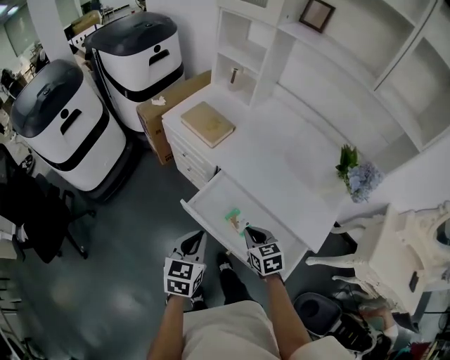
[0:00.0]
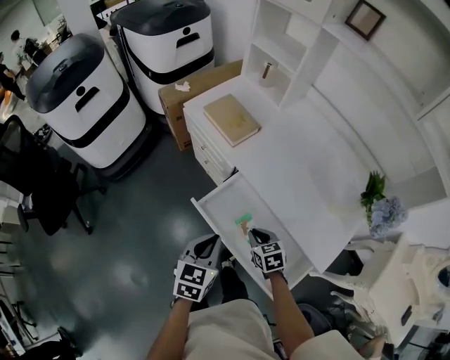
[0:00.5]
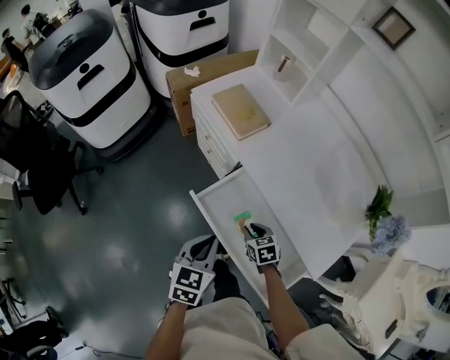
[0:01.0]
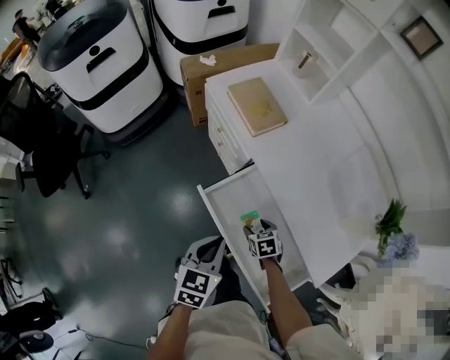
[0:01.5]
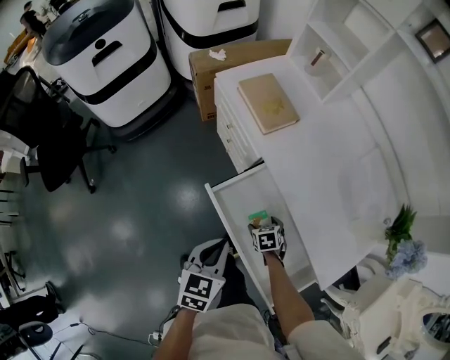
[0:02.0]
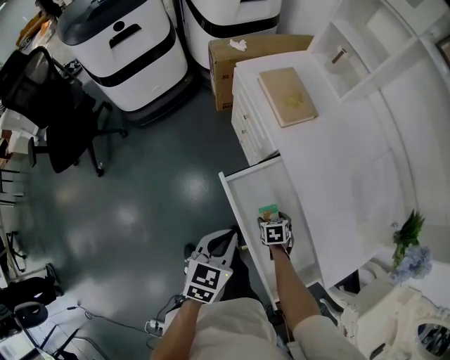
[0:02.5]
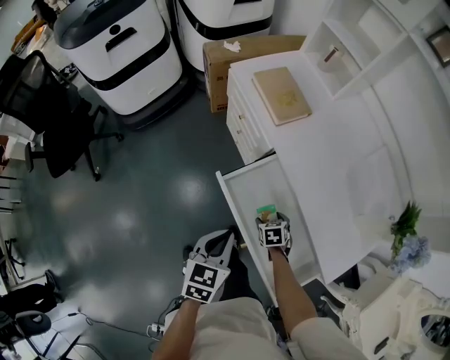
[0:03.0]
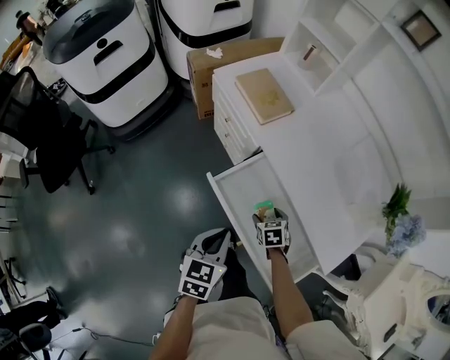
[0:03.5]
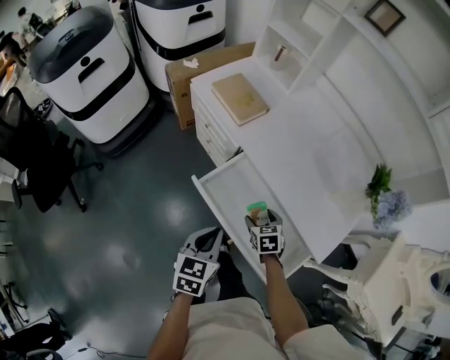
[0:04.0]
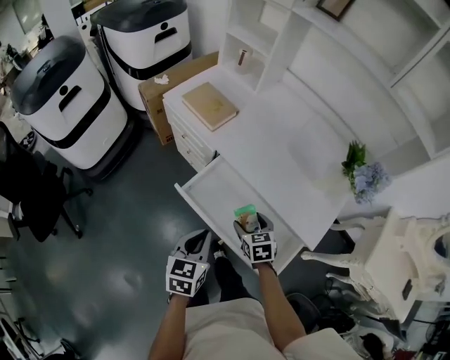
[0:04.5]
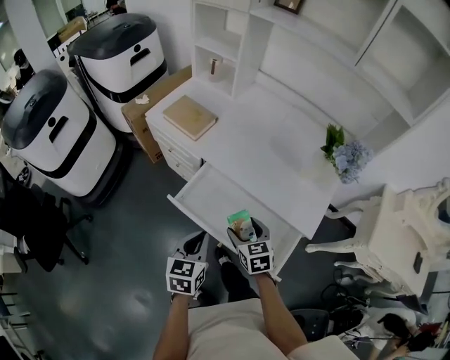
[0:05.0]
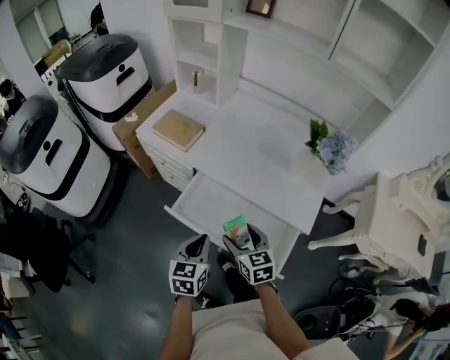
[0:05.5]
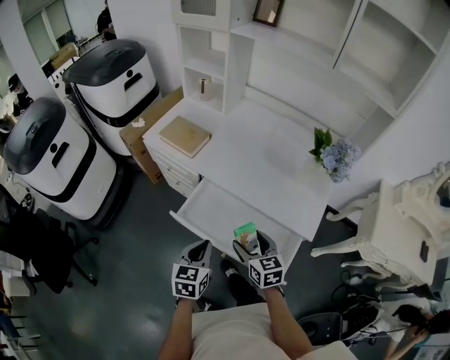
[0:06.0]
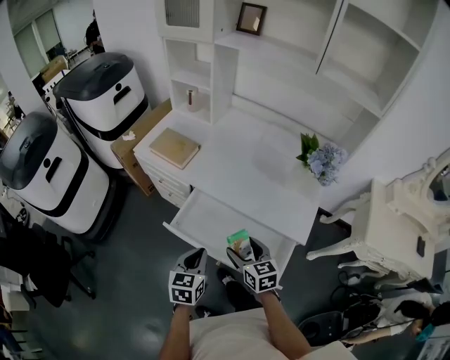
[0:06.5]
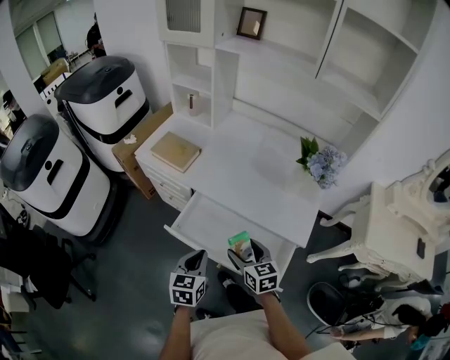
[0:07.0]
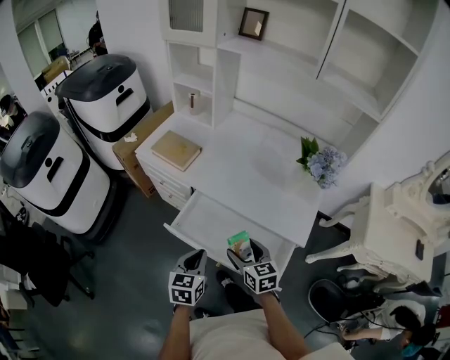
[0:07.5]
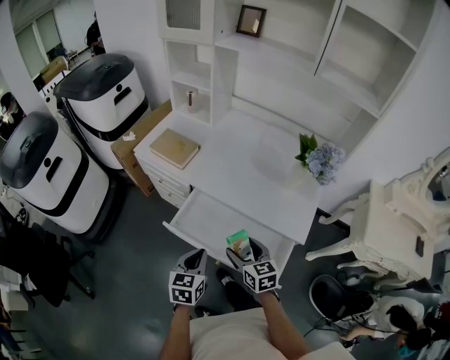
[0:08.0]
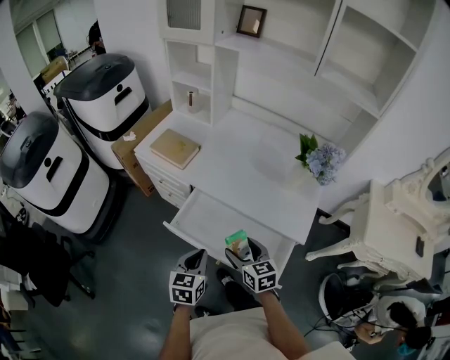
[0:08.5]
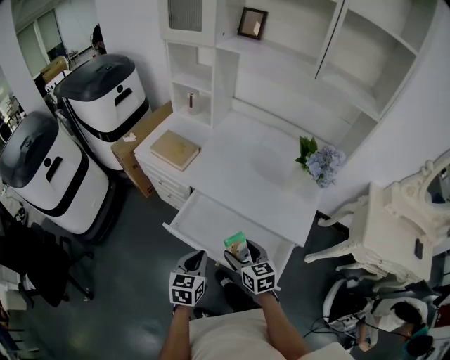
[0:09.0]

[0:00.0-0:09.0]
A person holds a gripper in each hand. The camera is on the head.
0:00.0 to 0:02.0: The left gripper travels downward by about 5 cm. Meanwhile the right gripper heads downward, covering approximately 25 cm, rotates approximately 30 degrees, and opens up.
0:02.0 to 0:04.5: The right gripper shifts approximately 20 cm upward, and swivels some 30 degrees. The left gripper changes place by roughly 5 cm.
0:04.5 to 0:07.0: The right gripper goes roughly 10 cm upward and backward, and changes its angle by some 20 degrees.
0:07.0 to 0:09.0: The grippers move only a little.

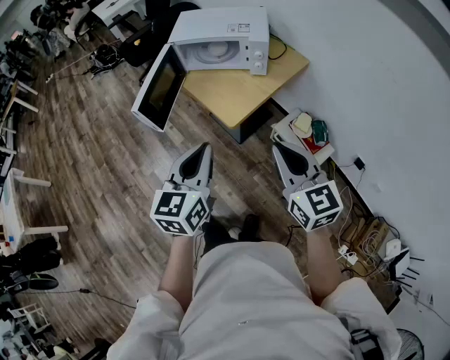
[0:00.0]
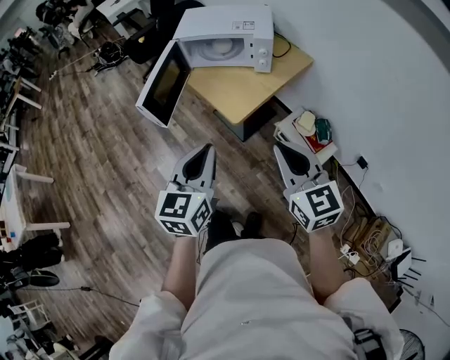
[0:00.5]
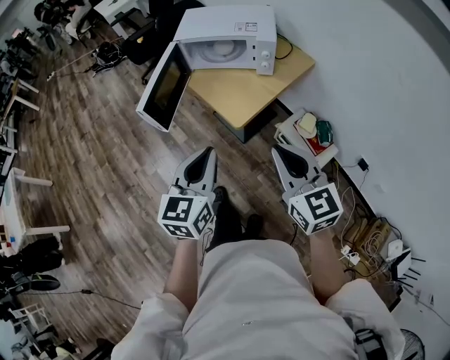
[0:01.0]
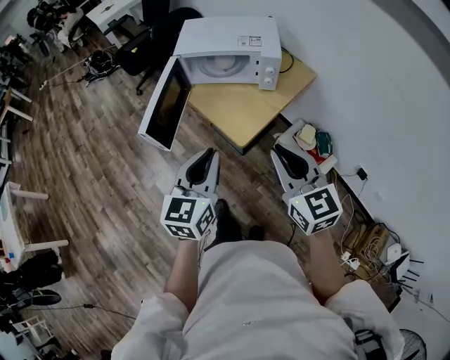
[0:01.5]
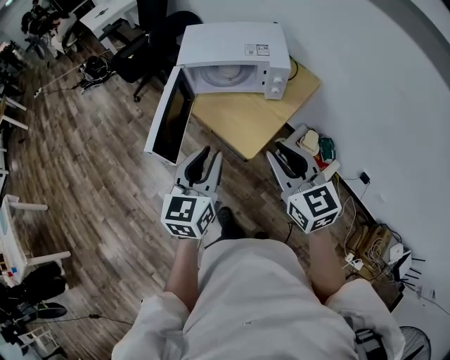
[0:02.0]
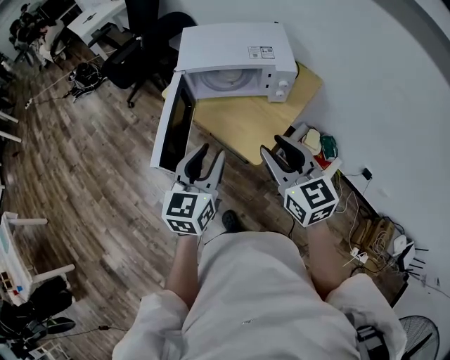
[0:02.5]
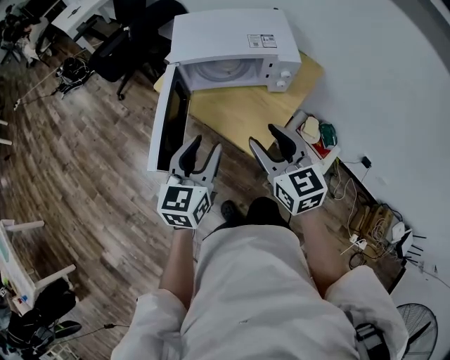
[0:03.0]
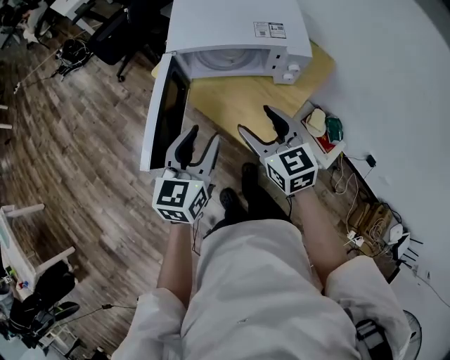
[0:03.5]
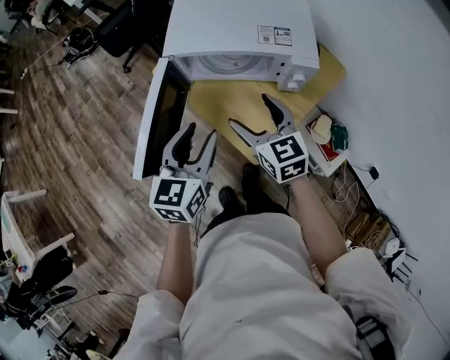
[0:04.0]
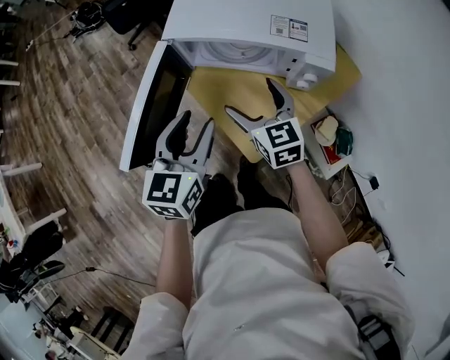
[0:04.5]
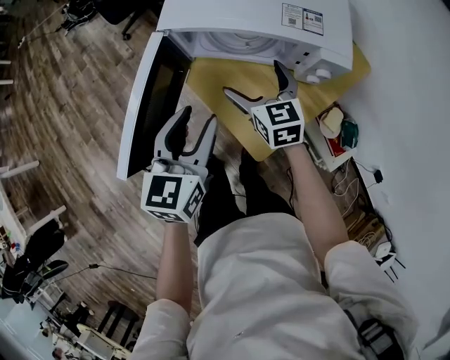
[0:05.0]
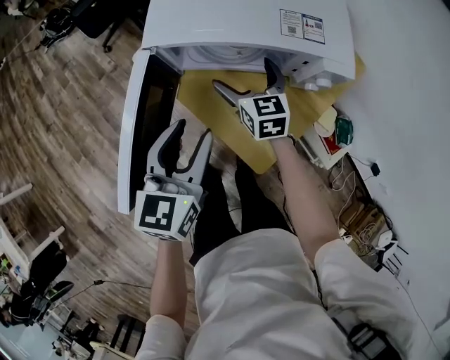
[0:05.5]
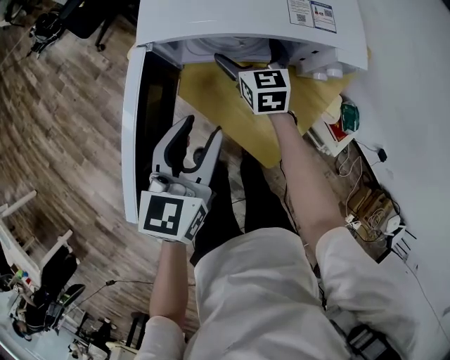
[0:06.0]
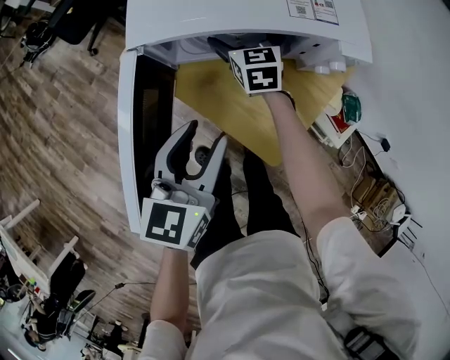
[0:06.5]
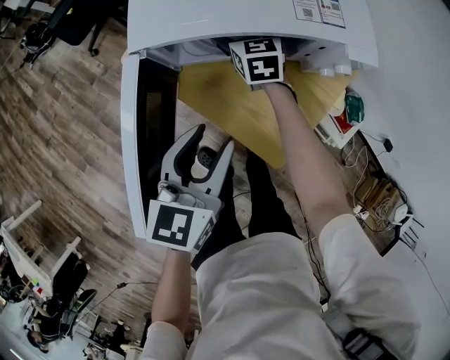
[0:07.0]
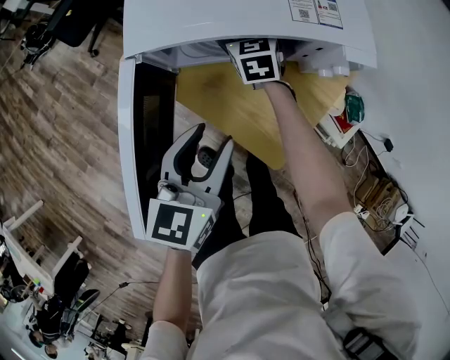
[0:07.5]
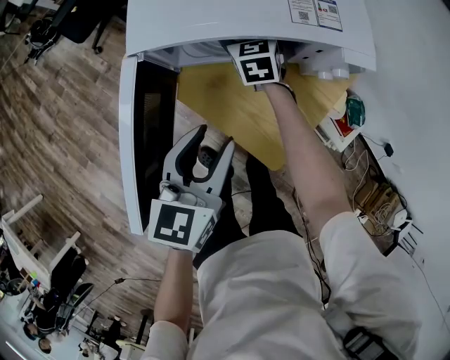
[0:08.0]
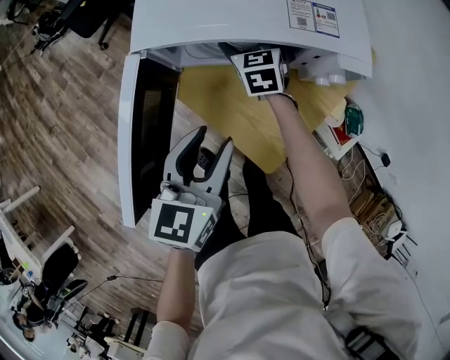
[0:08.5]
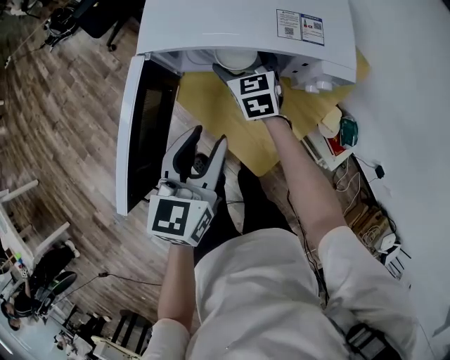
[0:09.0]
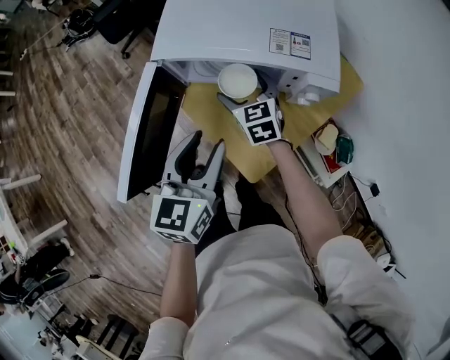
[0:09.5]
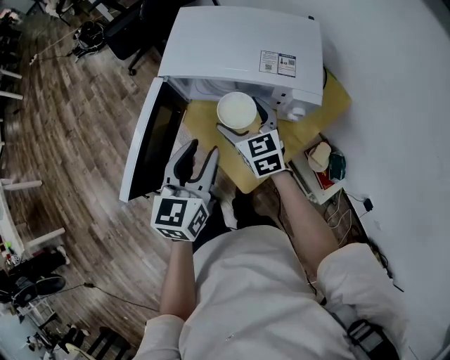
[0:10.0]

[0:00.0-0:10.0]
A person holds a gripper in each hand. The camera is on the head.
0:00.0 to 0:02.0: Both grippers move forward and to the left, about 15 cm. The left gripper opens up.
0:02.0 to 0:04.0: The grippers both shift forward and downward by some 25 cm. The right gripper opens its fingers.
0:04.0 to 0:06.0: The left gripper travels forward and downward by roughly 10 cm; the right gripper is displaced forward and downward by approximately 25 cm.
0:06.0 to 0:08.0: The right gripper goes some 5 cm forward.
0:08.0 to 0:10.0: The right gripper heads backward and upward, covering some 20 cm, and changes its angle by roughly 20 degrees. The left gripper is displaced upward by some 10 cm.

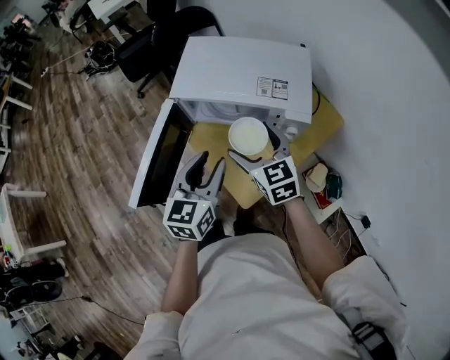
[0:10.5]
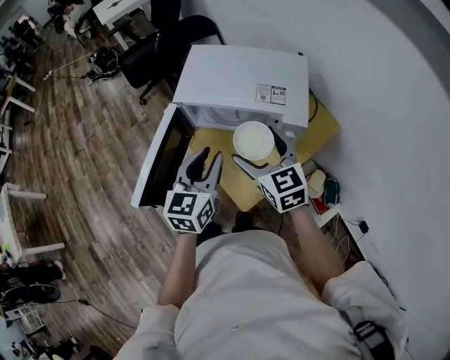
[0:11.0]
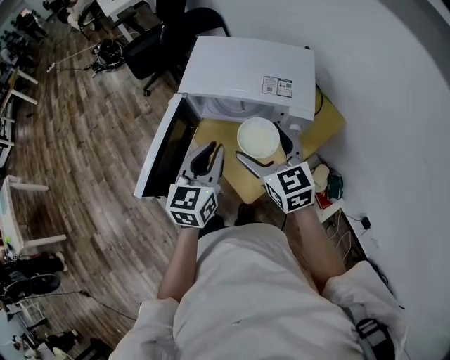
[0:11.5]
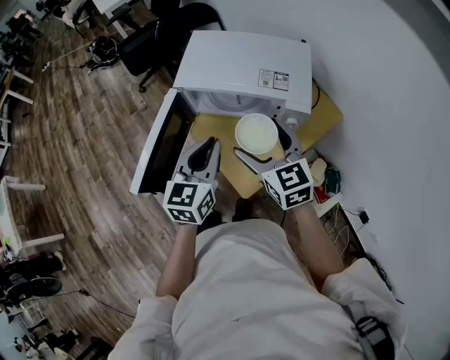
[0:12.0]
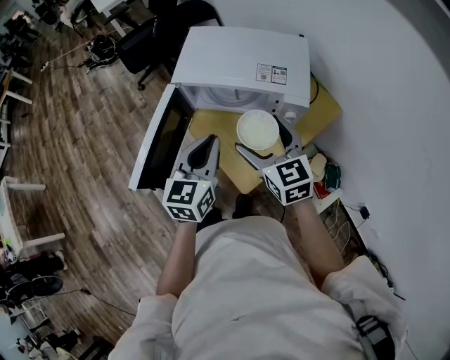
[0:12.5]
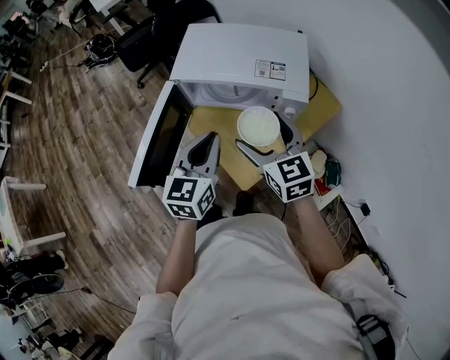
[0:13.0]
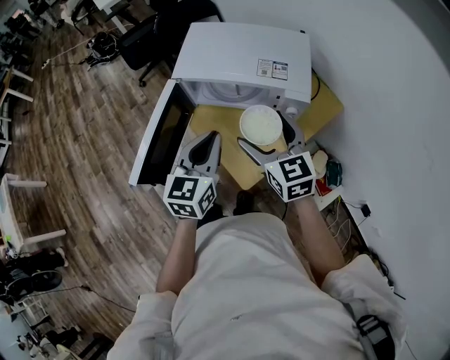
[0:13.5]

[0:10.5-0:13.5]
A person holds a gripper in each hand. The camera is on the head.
0:10.5 to 0:12.0: The right gripper shifts roughly 5 cm upward. The left gripper closes.
0:12.0 to 0:13.5: There are only small adjustments of the grippers.

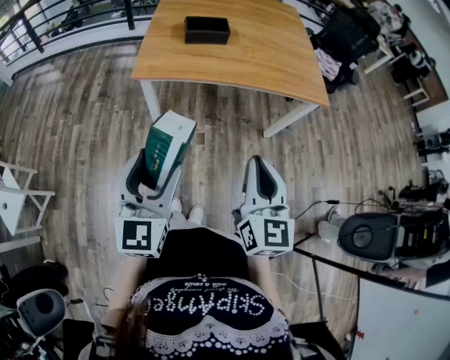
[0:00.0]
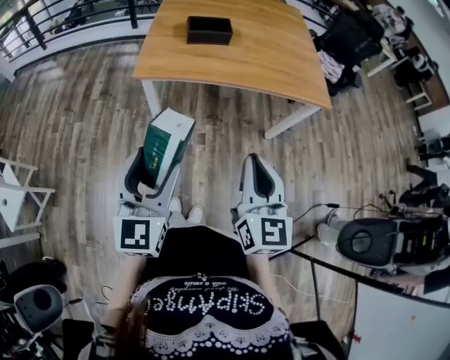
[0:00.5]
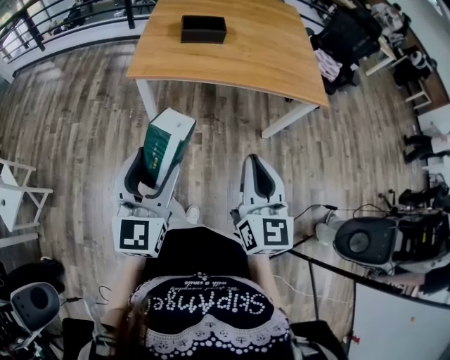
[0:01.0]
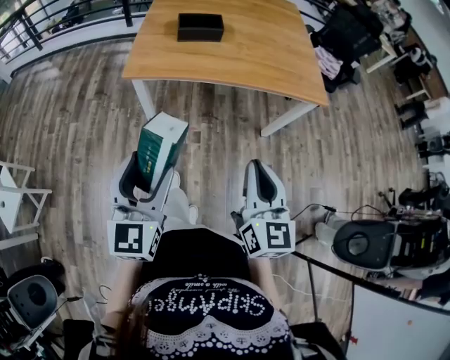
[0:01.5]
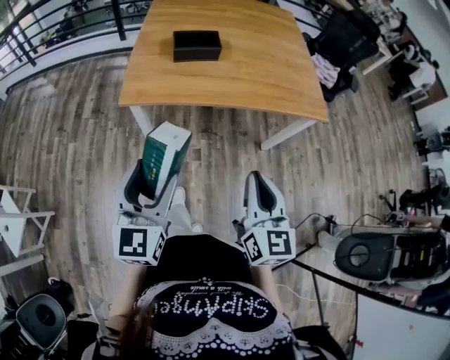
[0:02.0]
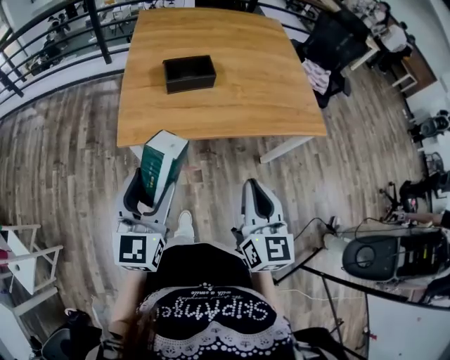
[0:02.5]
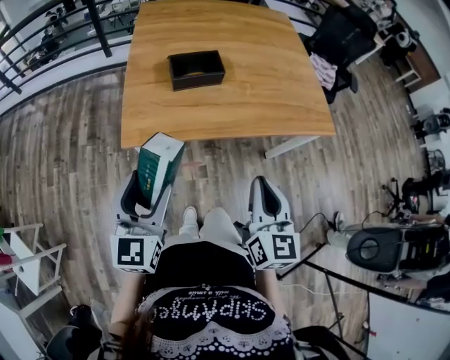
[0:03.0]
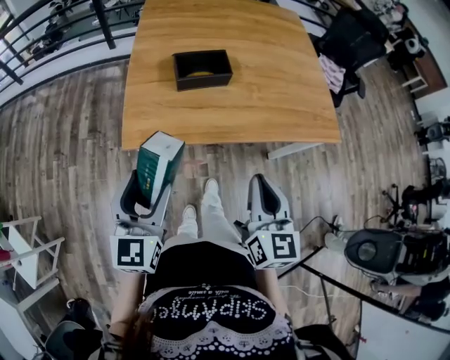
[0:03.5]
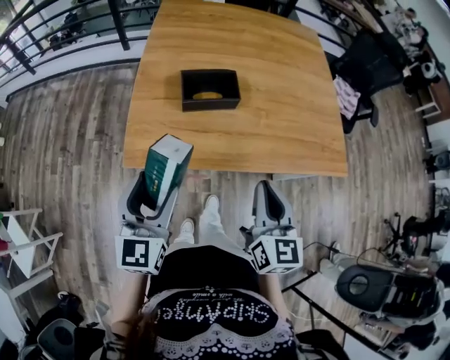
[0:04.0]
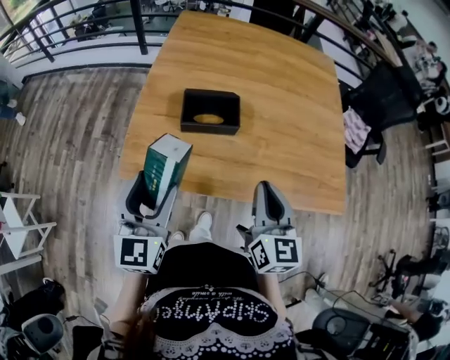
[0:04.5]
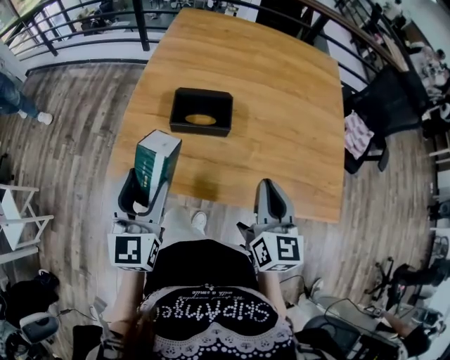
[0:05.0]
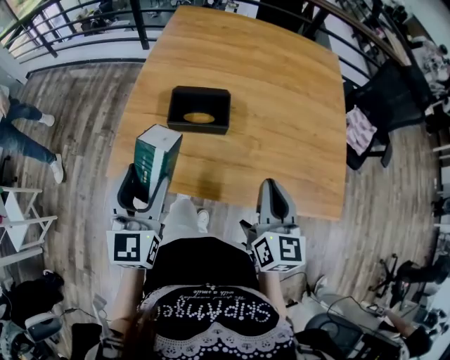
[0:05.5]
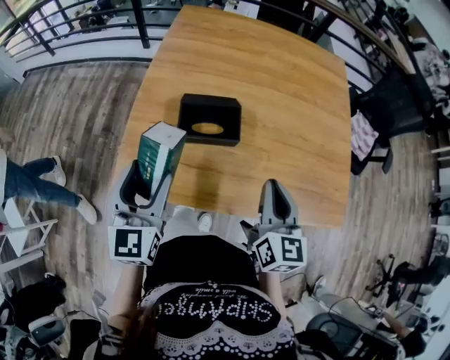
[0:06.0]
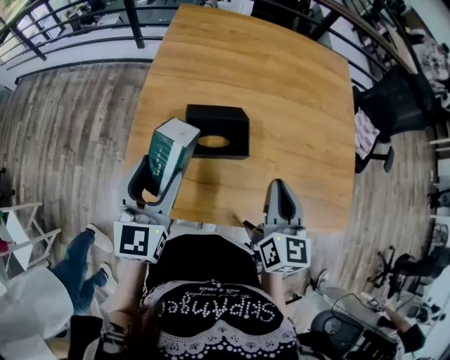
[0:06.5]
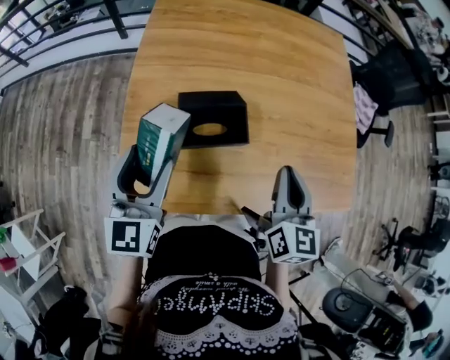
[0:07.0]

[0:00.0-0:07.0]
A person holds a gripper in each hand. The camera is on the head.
0:00.0 to 0:02.0: Both grippers travel together forward, some 10 cm.
0:02.0 to 0:03.5: The two grippers go approximately 15 cm forward and to the left.
0:03.5 to 0:05.0: Both grippers travel together forward and to the right, some 20 cm.
0:05.0 to 0:07.0: The left gripper goes approximately 15 cm forward, while the right gripper is displaced forward by roughly 10 cm.
